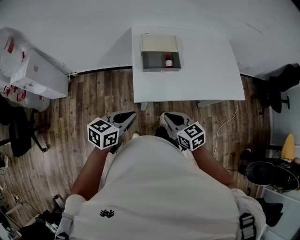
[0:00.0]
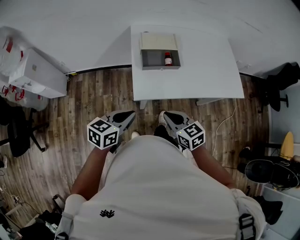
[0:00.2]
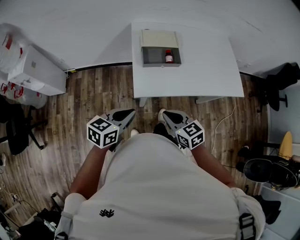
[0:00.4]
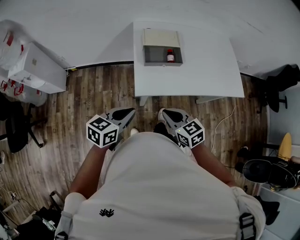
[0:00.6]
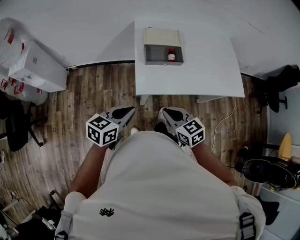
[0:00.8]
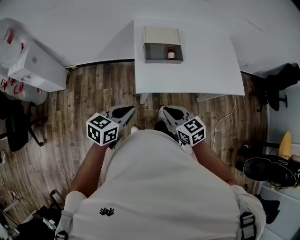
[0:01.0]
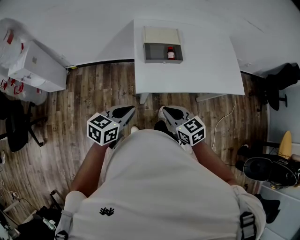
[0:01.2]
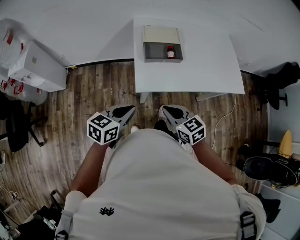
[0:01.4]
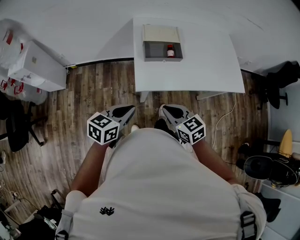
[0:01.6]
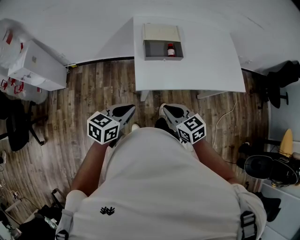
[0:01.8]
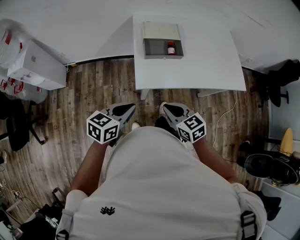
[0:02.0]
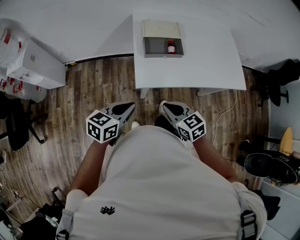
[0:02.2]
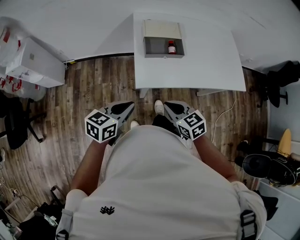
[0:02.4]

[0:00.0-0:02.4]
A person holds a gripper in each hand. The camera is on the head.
0:00.0 to 0:02.4: The grippers stay close to where they were, moving slightly.

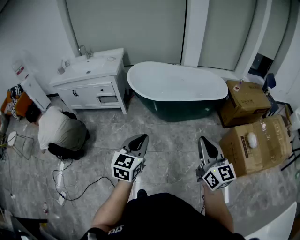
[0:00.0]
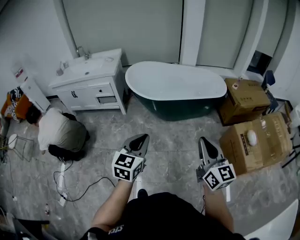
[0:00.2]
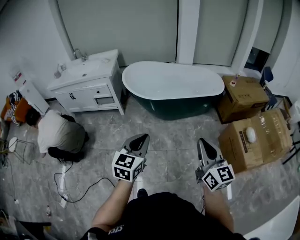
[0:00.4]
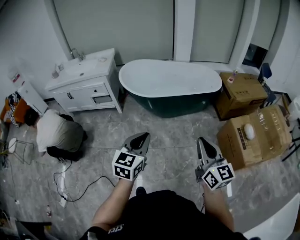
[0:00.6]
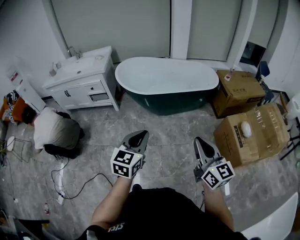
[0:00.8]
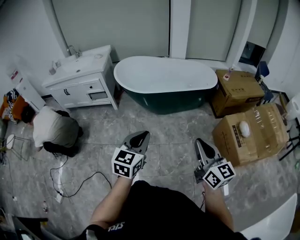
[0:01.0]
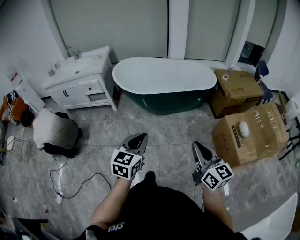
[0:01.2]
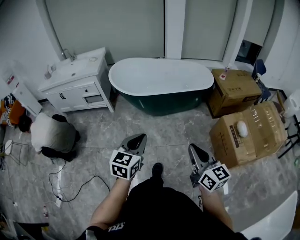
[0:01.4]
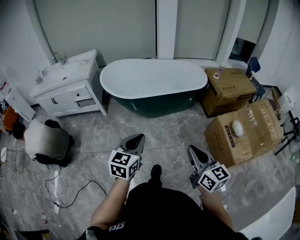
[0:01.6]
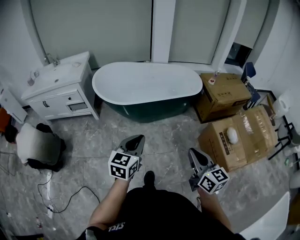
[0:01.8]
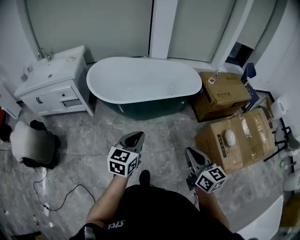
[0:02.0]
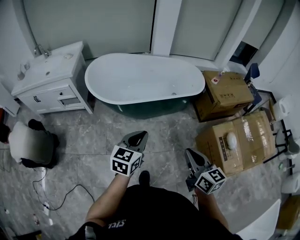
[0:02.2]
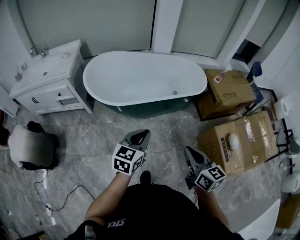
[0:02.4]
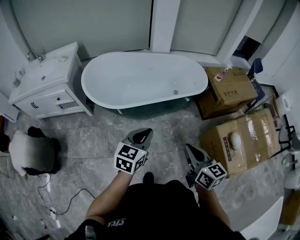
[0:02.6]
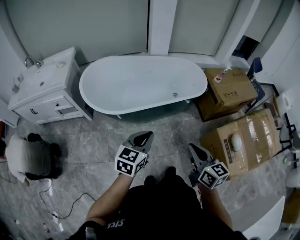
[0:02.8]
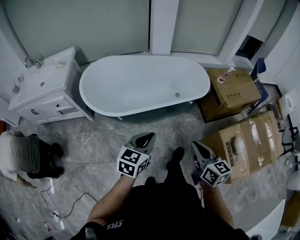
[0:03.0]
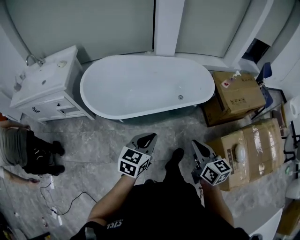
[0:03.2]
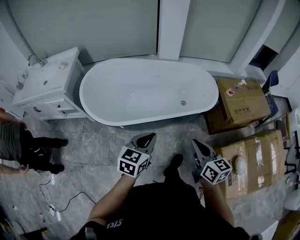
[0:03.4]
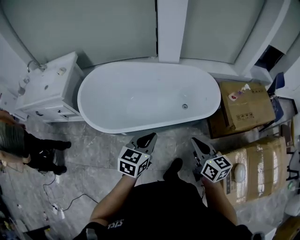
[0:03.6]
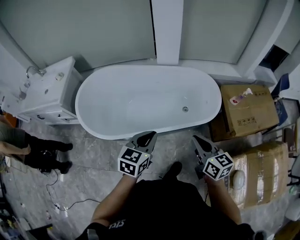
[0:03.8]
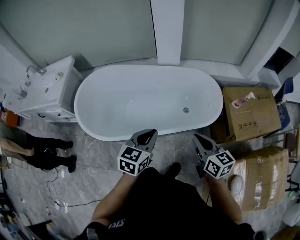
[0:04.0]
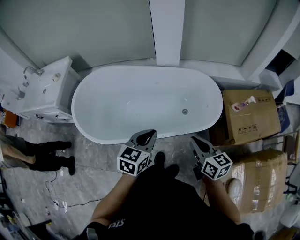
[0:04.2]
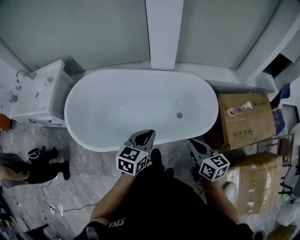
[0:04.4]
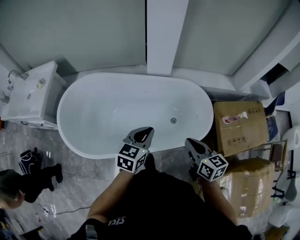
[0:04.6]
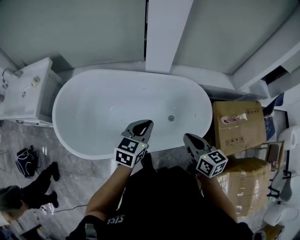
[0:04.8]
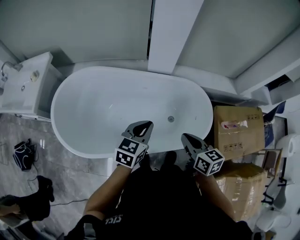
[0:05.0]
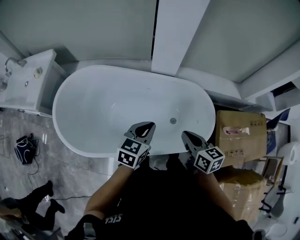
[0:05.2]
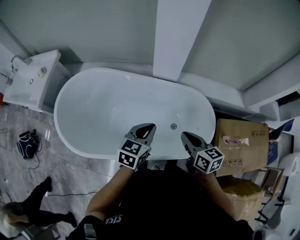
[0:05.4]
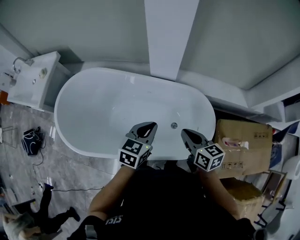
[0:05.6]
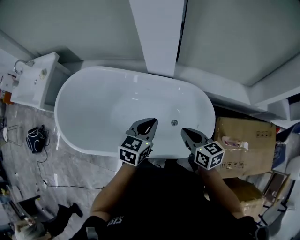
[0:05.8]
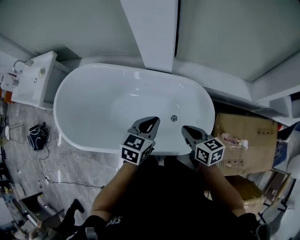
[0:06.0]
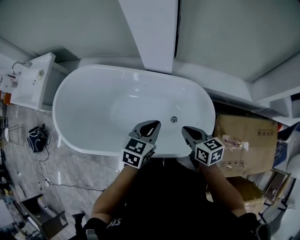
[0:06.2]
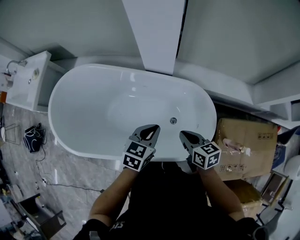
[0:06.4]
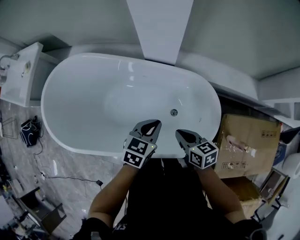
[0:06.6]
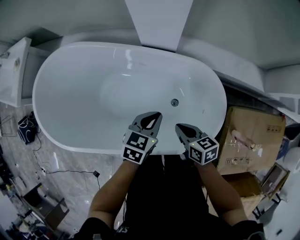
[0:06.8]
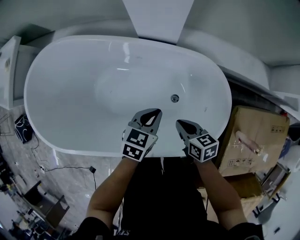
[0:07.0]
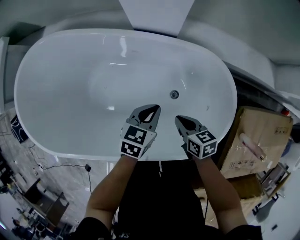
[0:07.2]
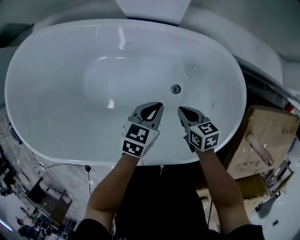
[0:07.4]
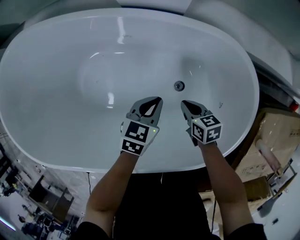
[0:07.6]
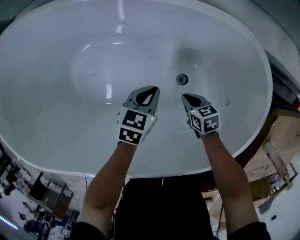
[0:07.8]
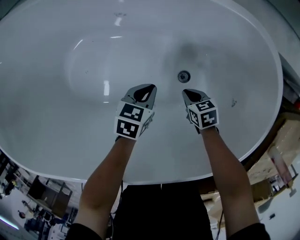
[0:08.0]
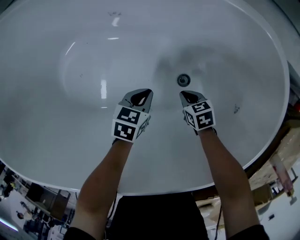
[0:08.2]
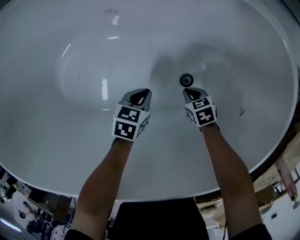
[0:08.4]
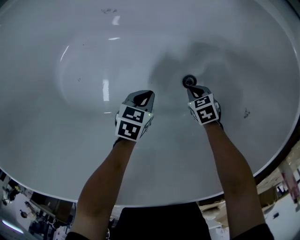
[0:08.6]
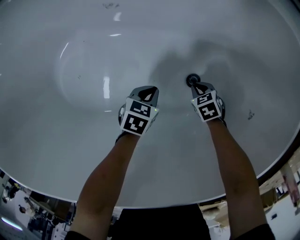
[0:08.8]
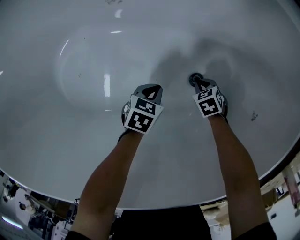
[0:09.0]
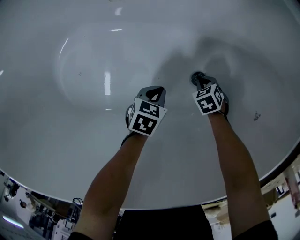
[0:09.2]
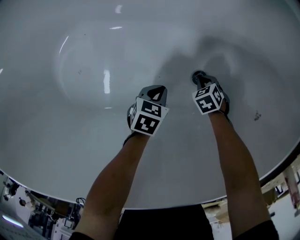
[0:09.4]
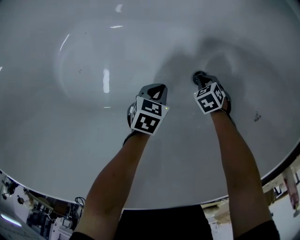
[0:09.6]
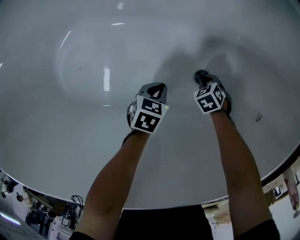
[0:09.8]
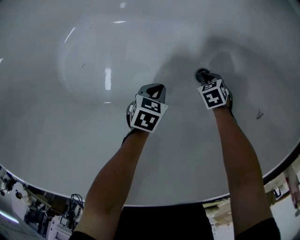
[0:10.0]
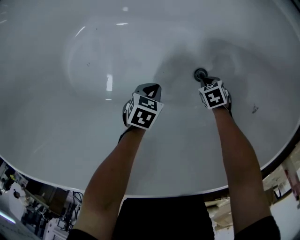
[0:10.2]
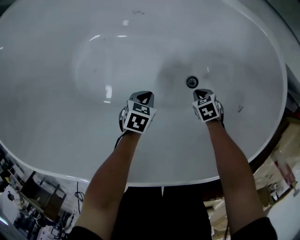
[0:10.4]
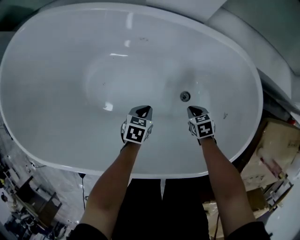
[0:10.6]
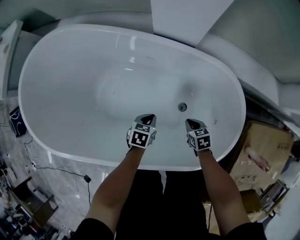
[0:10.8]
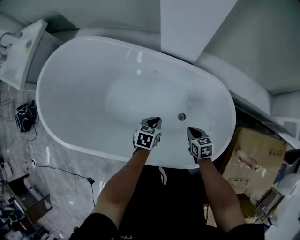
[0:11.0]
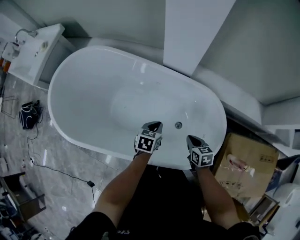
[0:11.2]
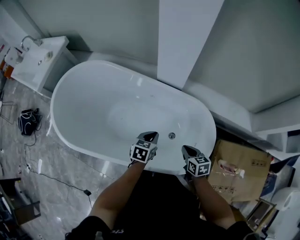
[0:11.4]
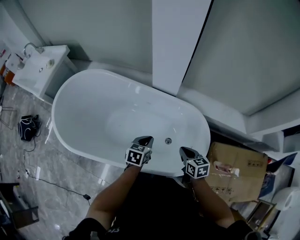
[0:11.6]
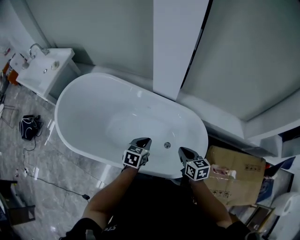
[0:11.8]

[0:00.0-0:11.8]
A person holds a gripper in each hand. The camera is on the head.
0:00.0 to 0:01.4: The right gripper moves to the right and downward, some 15 cm. The left gripper goes some 15 cm to the right.
0:01.4 to 0:03.0: The two grippers go some 40 cm forward.
0:03.0 to 0:04.4: Both grippers are carried forward and to the right, some 40 cm.
0:04.4 to 0:06.0: Both grippers travel together forward and to the right, approximately 30 cm. The right gripper changes its angle by some 20 degrees.
0:06.0 to 0:07.4: The two grippers go some 40 cm downward.
0:07.4 to 0:08.8: The two grippers go approximately 35 cm downward. The right gripper swivels about 30 degrees.
0:08.8 to 0:10.4: Both grippers move upward, roughly 10 cm.
0:10.4 to 0:11.8: Both grippers move upward, approximately 60 cm. The right gripper points its fingers approximately 40 degrees further upward, while the left gripper swivels roughly 30 degrees.

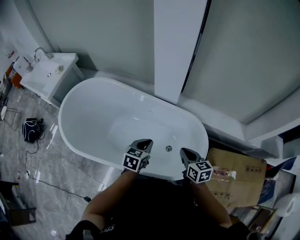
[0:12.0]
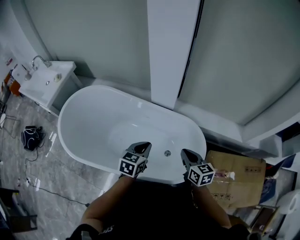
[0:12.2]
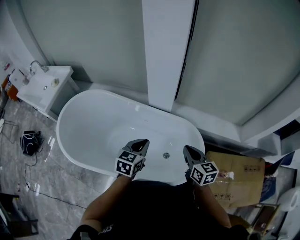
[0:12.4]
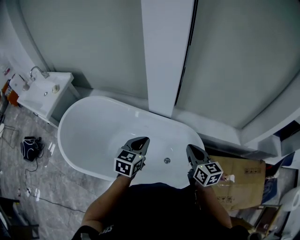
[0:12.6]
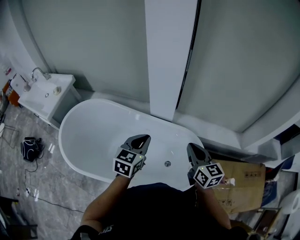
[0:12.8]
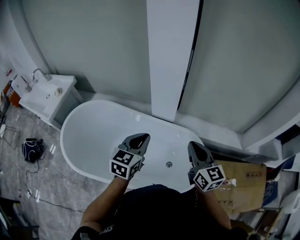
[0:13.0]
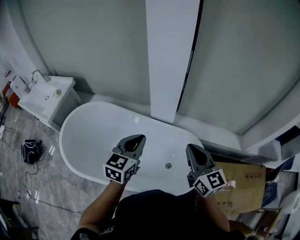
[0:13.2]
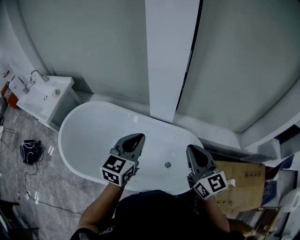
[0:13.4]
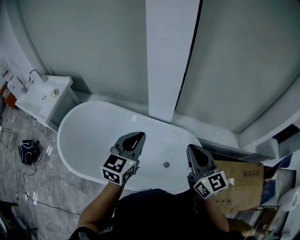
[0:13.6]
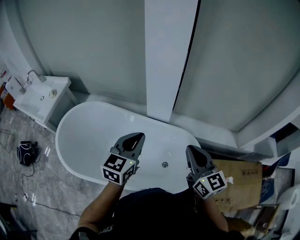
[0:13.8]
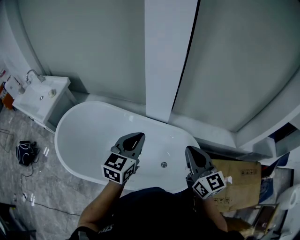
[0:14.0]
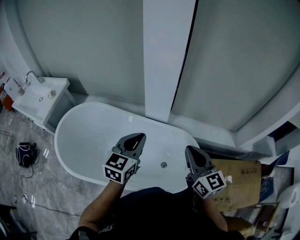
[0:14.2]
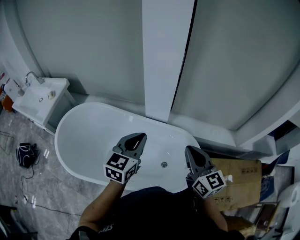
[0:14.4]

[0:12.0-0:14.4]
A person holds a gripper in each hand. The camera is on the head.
0:12.0 to 0:13.2: Both grippers move upward, some 20 cm. The left gripper swivels roughly 20 degrees; the right gripper rotates roughly 30 degrees.
0:13.2 to 0:14.4: The grippers stay close to where they were, moving slightly.

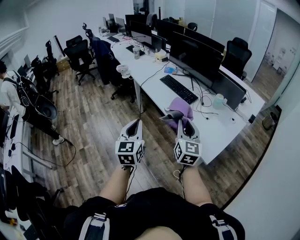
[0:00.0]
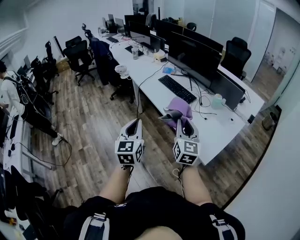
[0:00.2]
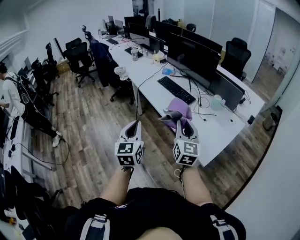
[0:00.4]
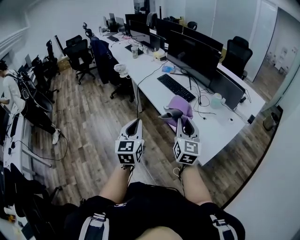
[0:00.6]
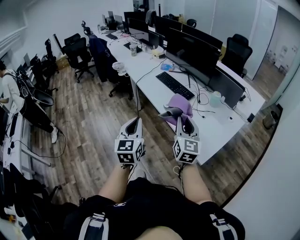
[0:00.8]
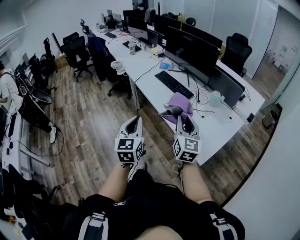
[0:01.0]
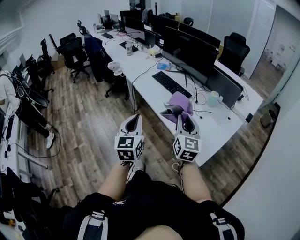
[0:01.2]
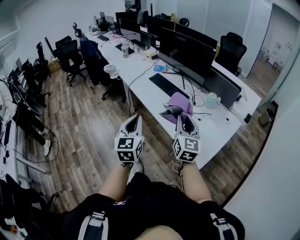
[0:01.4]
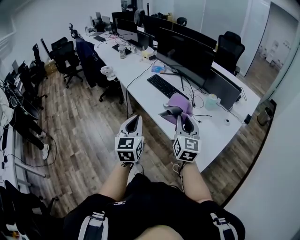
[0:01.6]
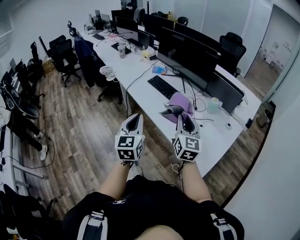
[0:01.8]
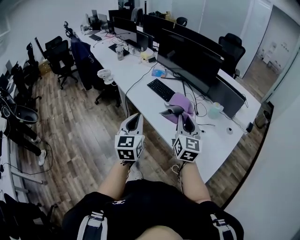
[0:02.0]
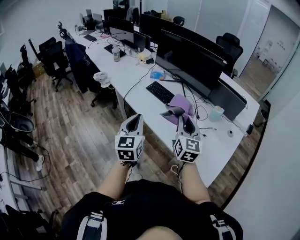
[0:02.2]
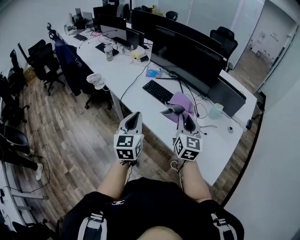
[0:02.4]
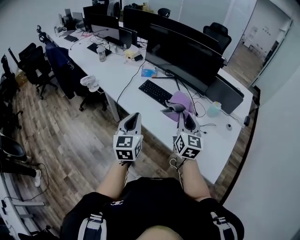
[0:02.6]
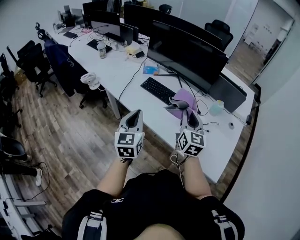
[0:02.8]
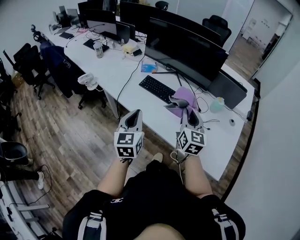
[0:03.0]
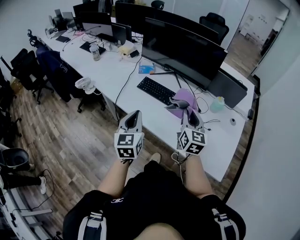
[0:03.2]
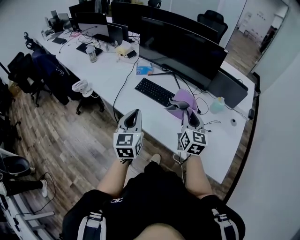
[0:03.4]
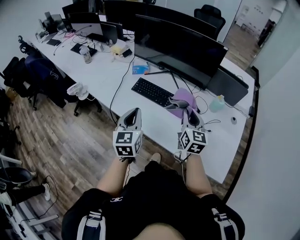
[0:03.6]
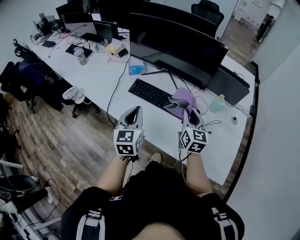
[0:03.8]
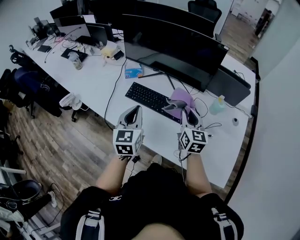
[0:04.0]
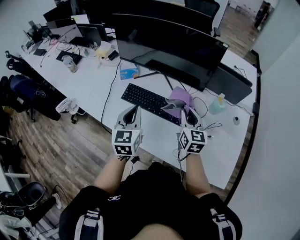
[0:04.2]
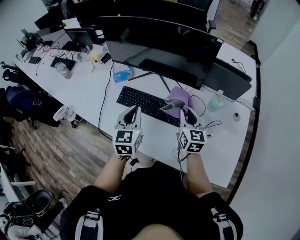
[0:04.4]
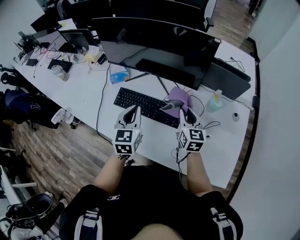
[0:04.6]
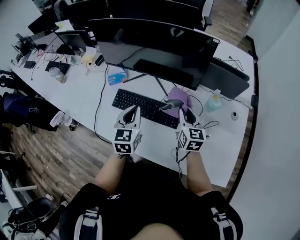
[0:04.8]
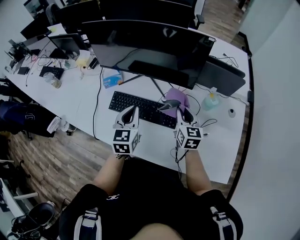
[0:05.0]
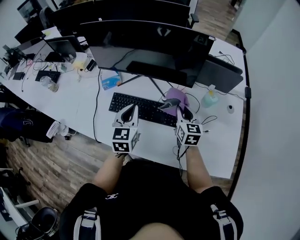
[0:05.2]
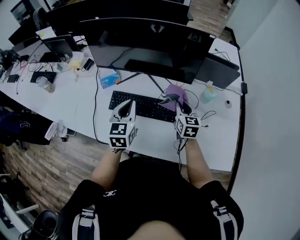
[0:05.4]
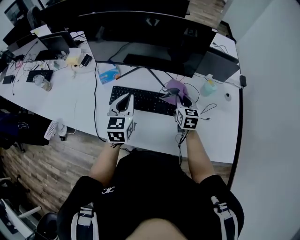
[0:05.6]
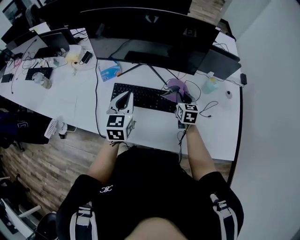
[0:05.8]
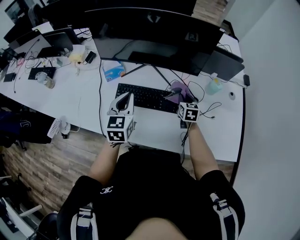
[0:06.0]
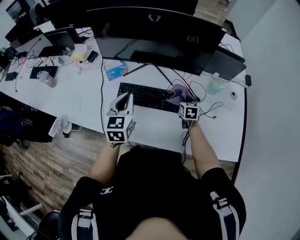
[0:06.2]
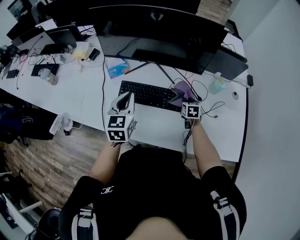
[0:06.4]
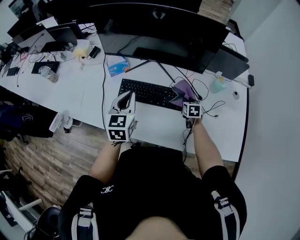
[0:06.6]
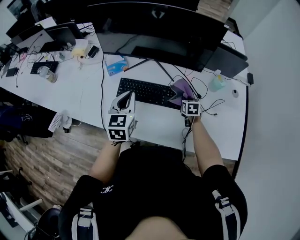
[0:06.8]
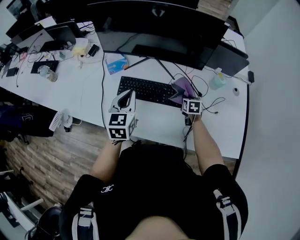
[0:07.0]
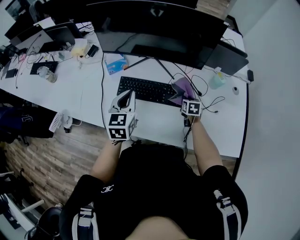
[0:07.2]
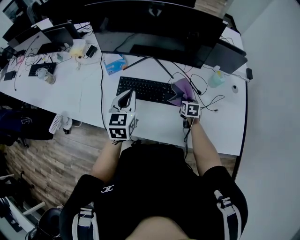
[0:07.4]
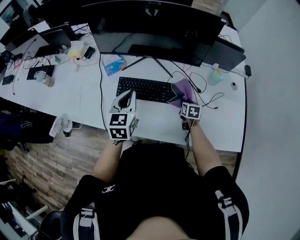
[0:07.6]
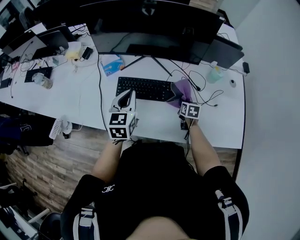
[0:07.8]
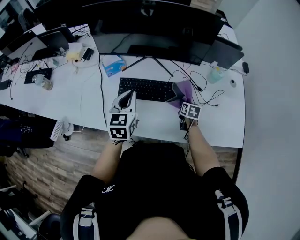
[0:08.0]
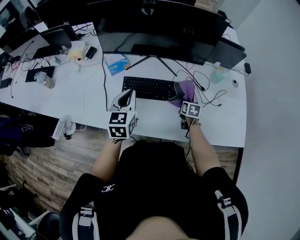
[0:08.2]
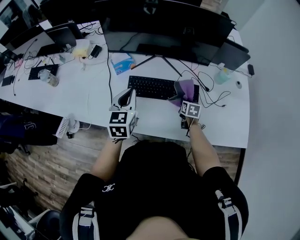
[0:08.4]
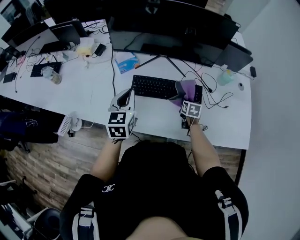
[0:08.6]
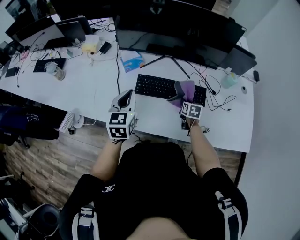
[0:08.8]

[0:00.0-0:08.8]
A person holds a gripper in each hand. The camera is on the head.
0:00.0 to 0:01.4: The two grippers go roughly 10 cm forward and to the right.
0:01.4 to 0:03.0: The two grippers go roughly 35 cm forward and to the left.
0:03.0 to 0:04.4: The left gripper moves forward, some 30 cm; the right gripper goes some 25 cm forward and downward.
0:04.4 to 0:05.8: The right gripper is displaced downward and forward by about 10 cm, and swivels approximately 20 degrees; the left gripper shifts approximately 10 cm to the left and forward.
0:05.8 to 0:07.4: The right gripper shifts approximately 10 cm downward, and changes its angle by roughly 20 degrees.
0:07.4 to 0:08.8: The grippers both shift to the left by roughly 15 cm.
